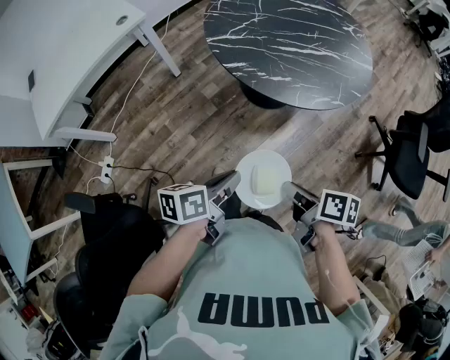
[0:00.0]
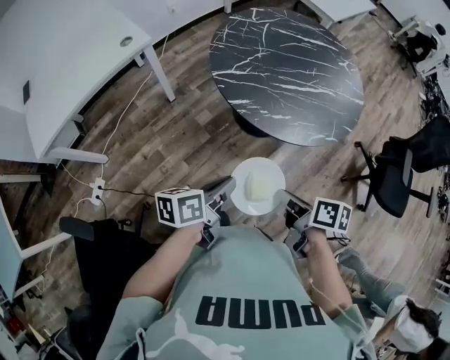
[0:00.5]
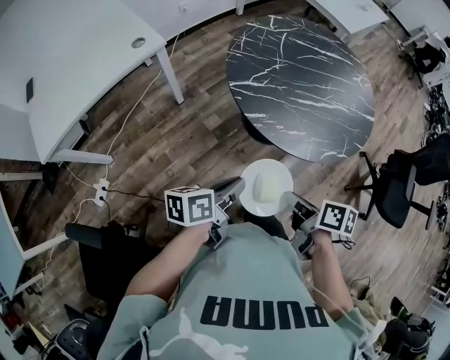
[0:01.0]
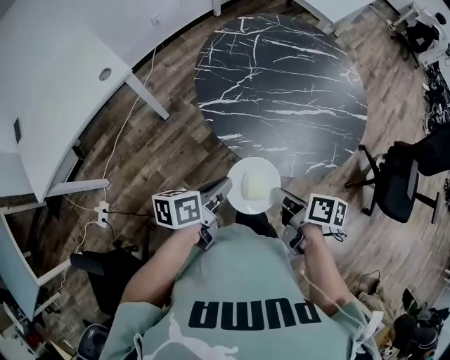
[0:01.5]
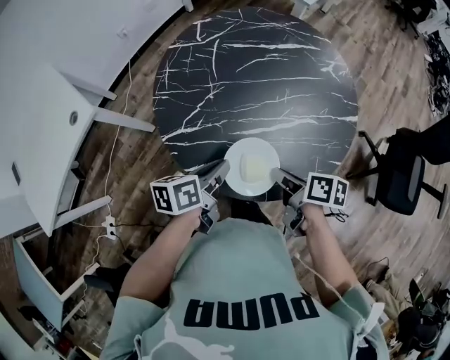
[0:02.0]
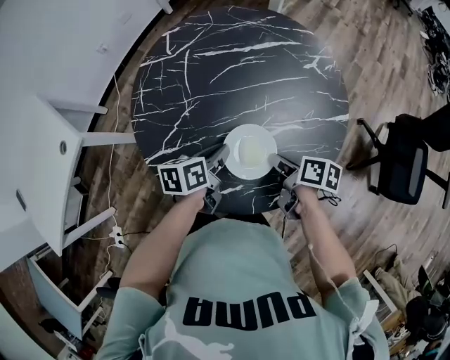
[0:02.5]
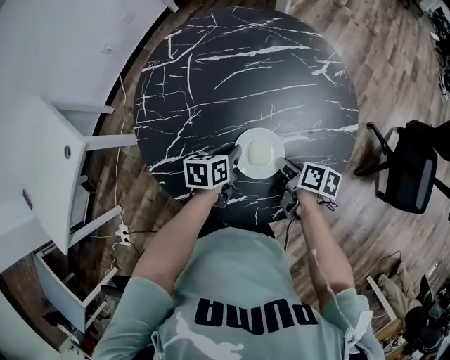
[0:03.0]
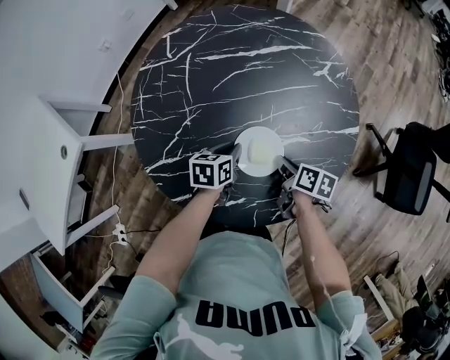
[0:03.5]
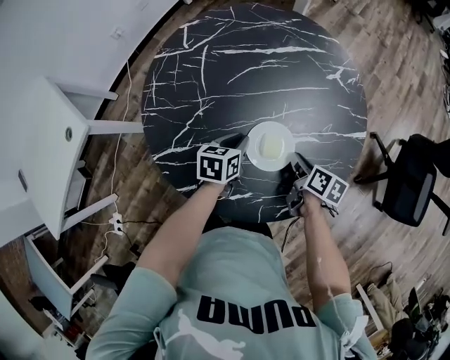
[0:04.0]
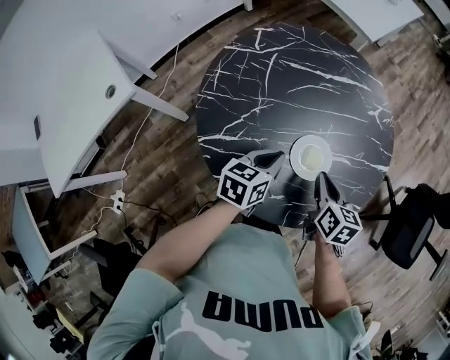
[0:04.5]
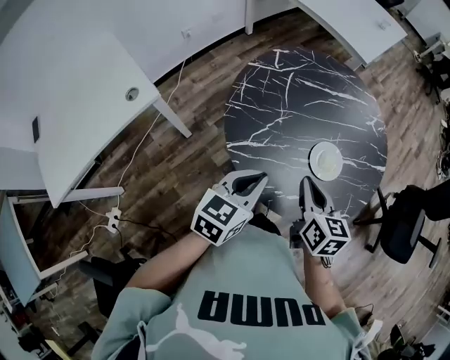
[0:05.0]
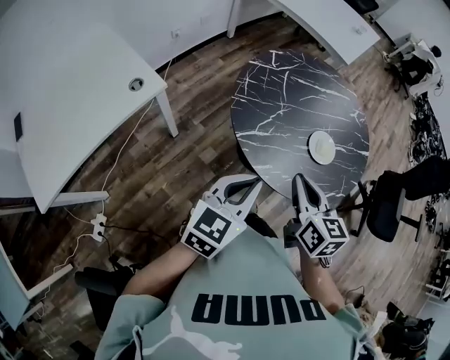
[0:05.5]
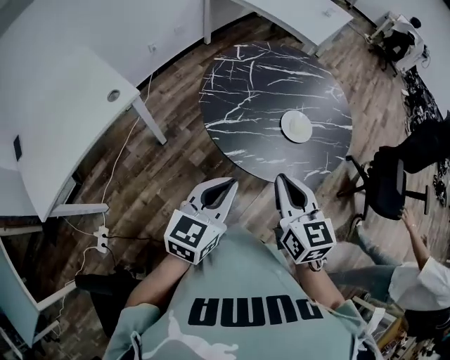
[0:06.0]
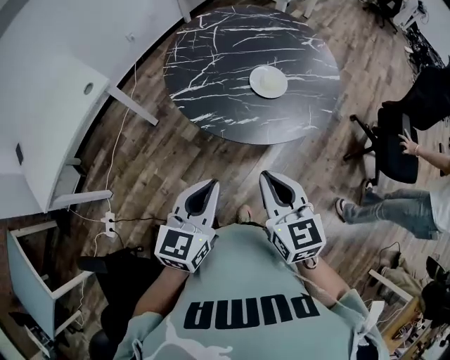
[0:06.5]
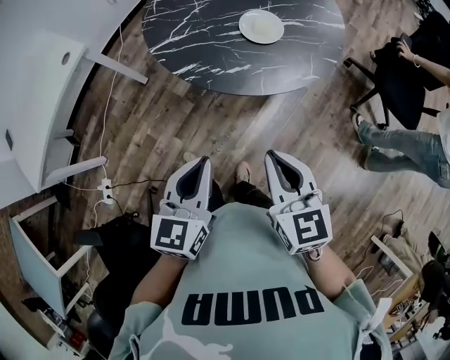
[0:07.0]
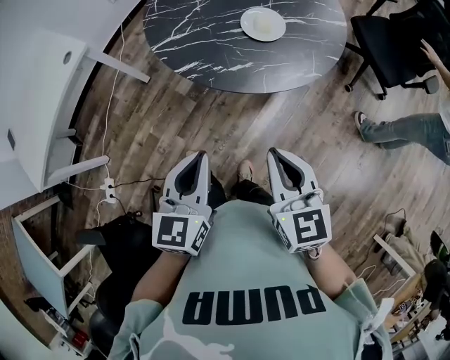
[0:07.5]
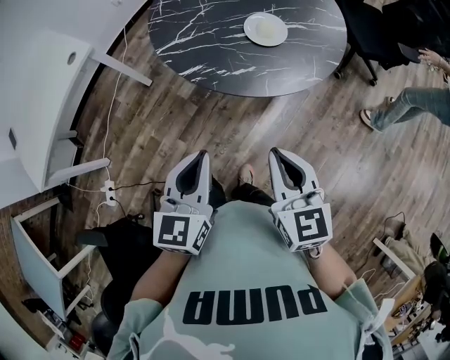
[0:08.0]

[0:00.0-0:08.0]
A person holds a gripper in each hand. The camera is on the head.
0:00.0 to 0:02.0: Both grippers move forward, about 40 cm.
0:02.0 to 0:04.0: Both grippers travel together forward, downward and to the right, approximately 20 cm. The left gripper rotates roughly 30 degrees.
0:04.0 to 0:06.0: The left gripper is displaced backward, upward and to the left by roughly 50 cm, and points its fingers some 30 degrees further upward. The right gripper is displaced upward, backward and to the left by roughly 50 cm, and twists some 50 degrees counterclockwise, seen from behind.
0:06.0 to 0:08.0: The left gripper moves backward, to the right and downward, roughly 15 cm, while the right gripper is displaced to the right, backward and downward by roughly 20 cm.

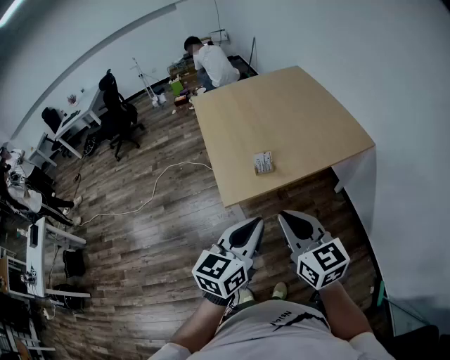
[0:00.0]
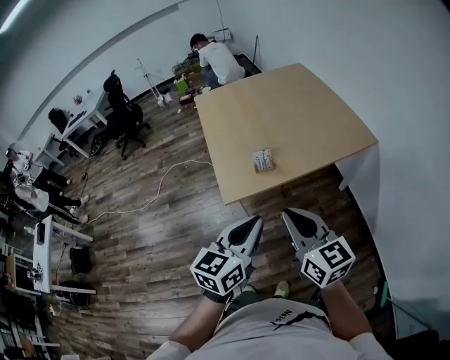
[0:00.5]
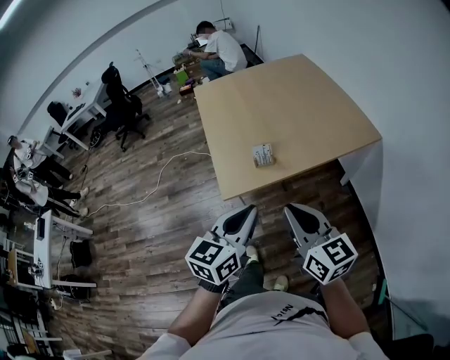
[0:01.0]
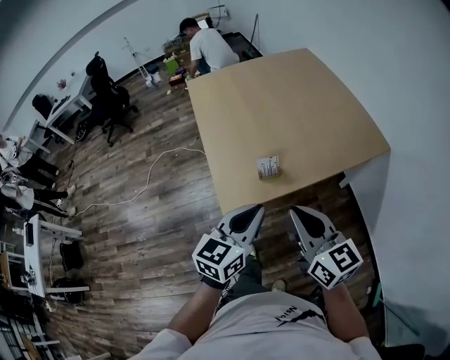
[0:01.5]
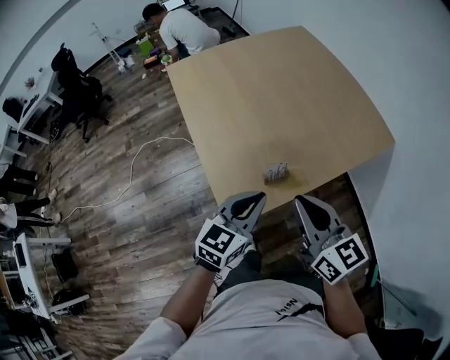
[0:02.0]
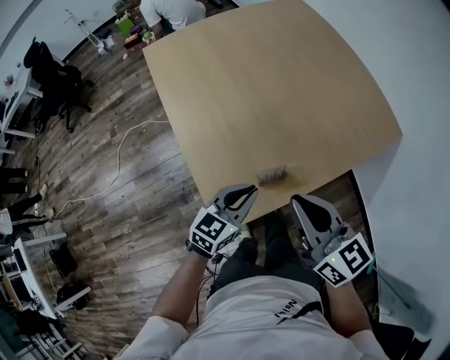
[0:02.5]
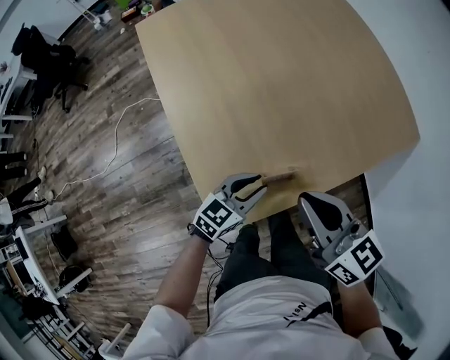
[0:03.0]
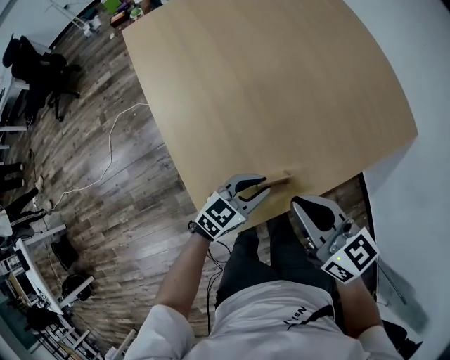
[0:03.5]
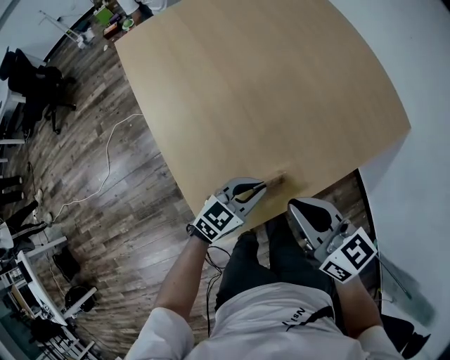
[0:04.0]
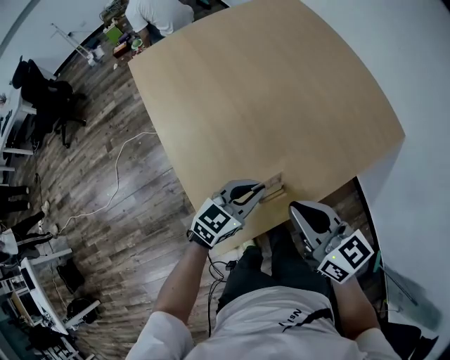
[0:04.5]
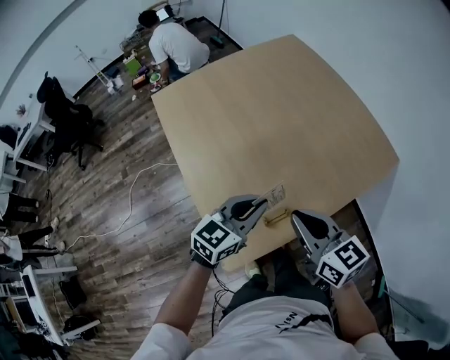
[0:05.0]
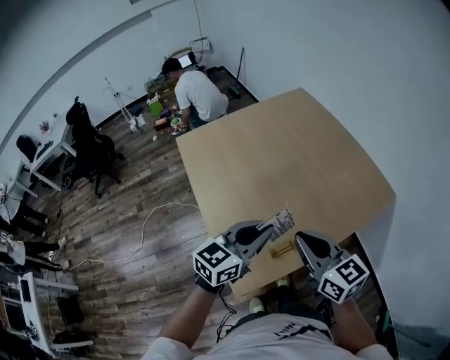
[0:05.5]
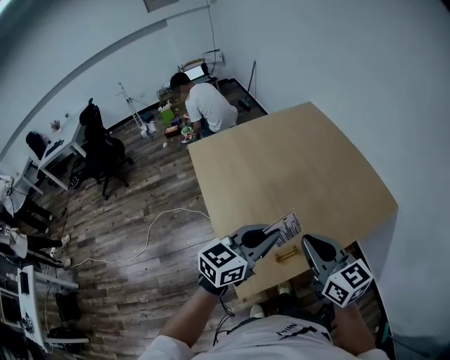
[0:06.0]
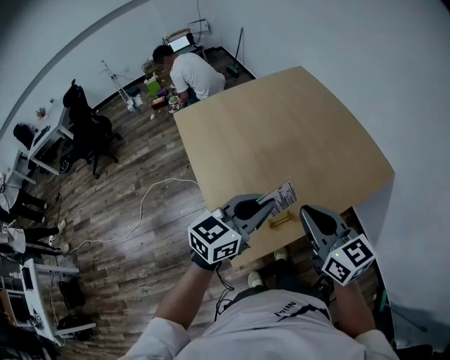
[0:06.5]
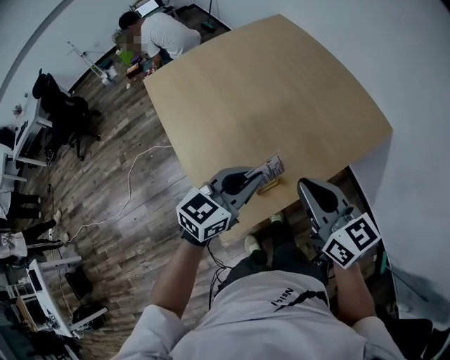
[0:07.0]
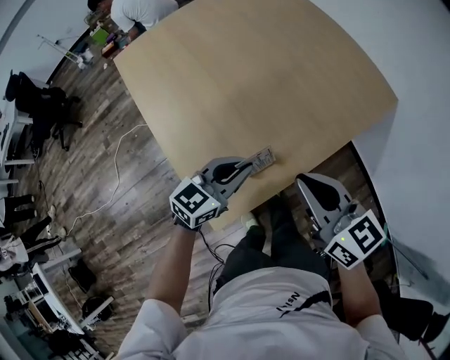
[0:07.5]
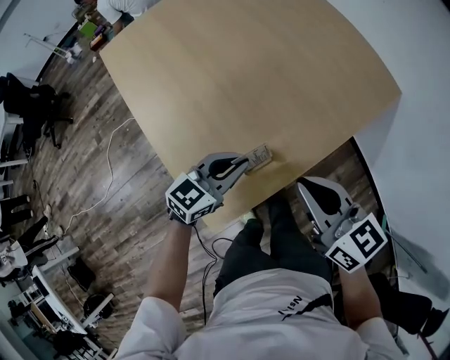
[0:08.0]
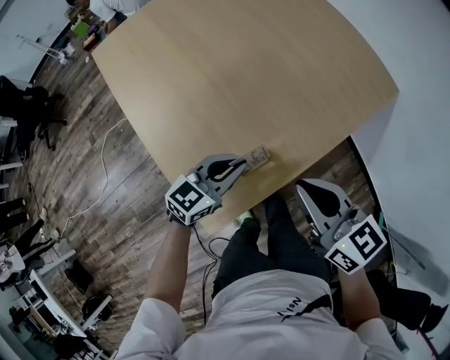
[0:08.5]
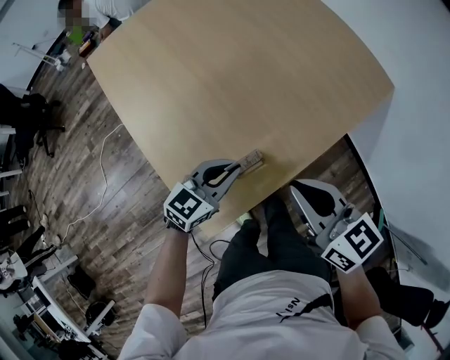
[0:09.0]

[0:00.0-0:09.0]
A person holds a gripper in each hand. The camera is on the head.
0:00.0 to 0:02.0: The right gripper shifts roughly 25 cm forward. Meanwhile the left gripper heads forward and downward, covering roughly 30 cm.
0:02.0 to 0:04.5: Both grippers travel together forward and downward, roughly 20 cm.
0:04.5 to 0:07.0: The right gripper heads upward, covering about 10 cm. The left gripper heads upward, covering roughly 15 cm.
0:07.0 to 0:09.0: The right gripper heads downward, covering roughly 10 cm. Meanwhile the left gripper heads downward, covering about 20 cm.

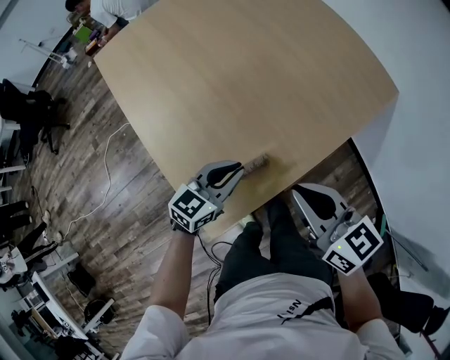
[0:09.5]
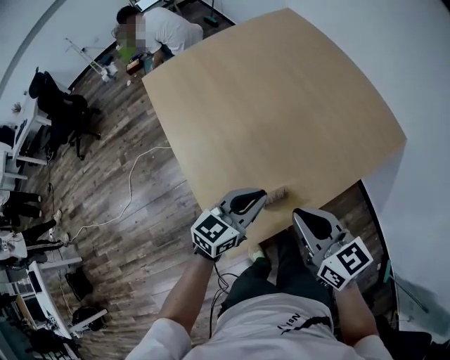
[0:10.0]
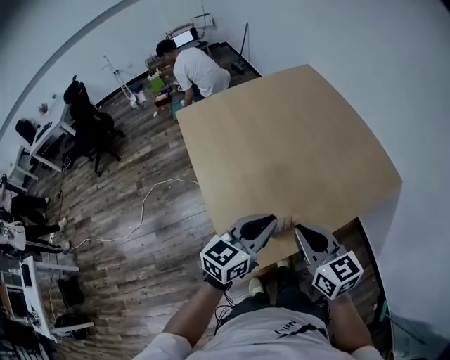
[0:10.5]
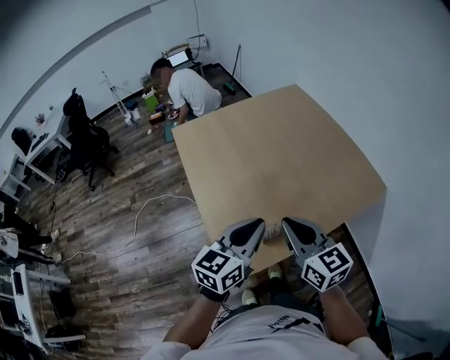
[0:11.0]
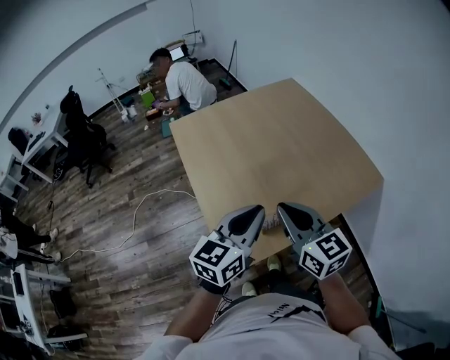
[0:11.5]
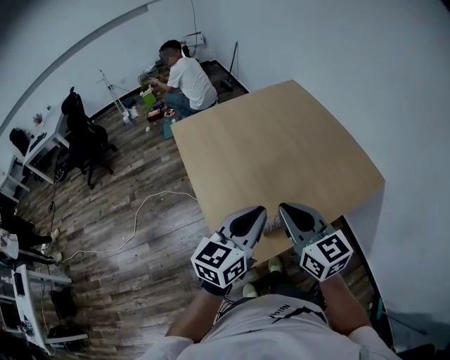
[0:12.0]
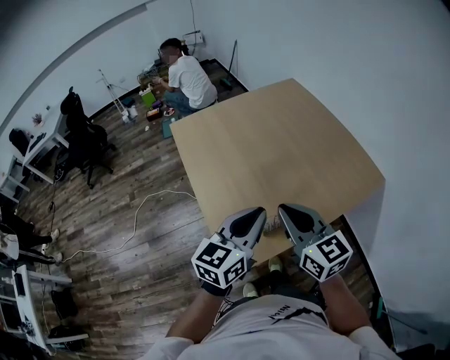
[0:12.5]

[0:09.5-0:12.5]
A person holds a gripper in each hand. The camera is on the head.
0:09.5 to 0:11.0: The left gripper goes roughly 25 cm upward, and turns by approximately 30 degrees; the right gripper moves upward and to the left, about 15 cm.
0:11.0 to 0:12.5: There are only small adjustments of the grippers.

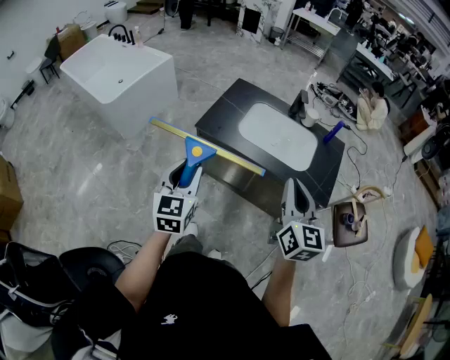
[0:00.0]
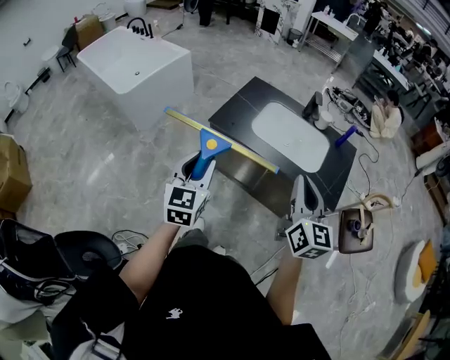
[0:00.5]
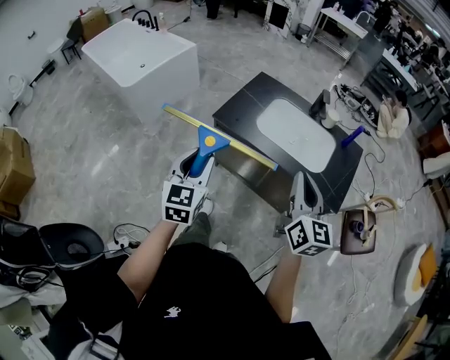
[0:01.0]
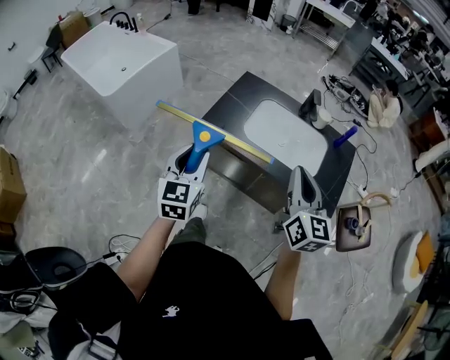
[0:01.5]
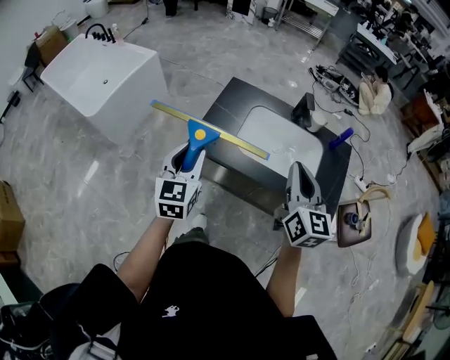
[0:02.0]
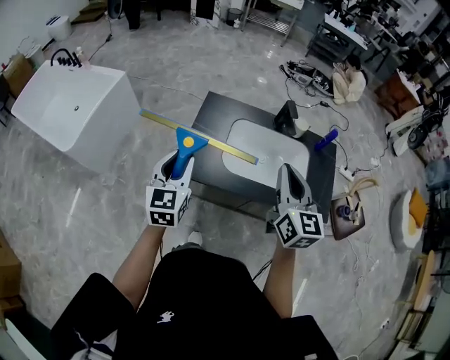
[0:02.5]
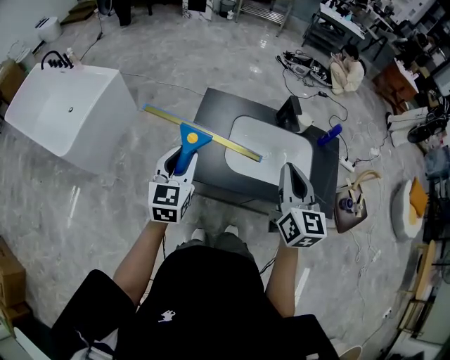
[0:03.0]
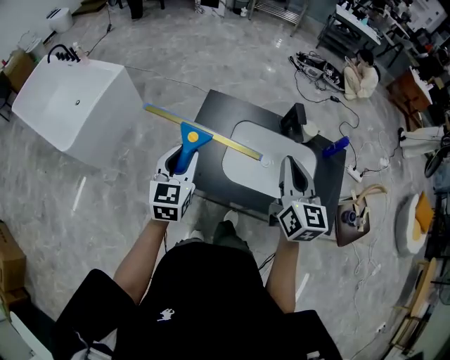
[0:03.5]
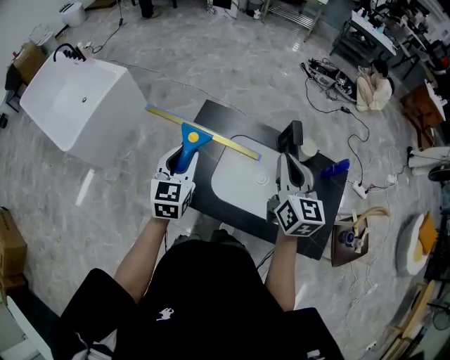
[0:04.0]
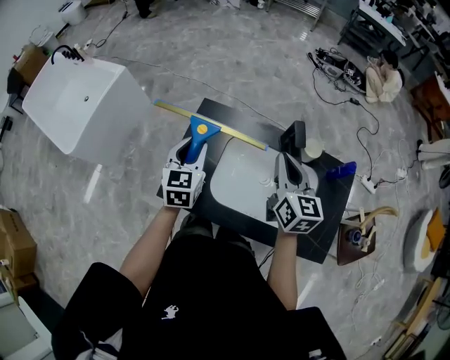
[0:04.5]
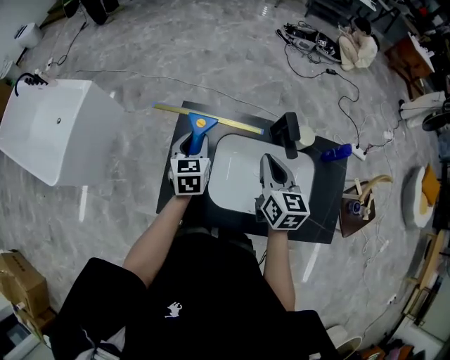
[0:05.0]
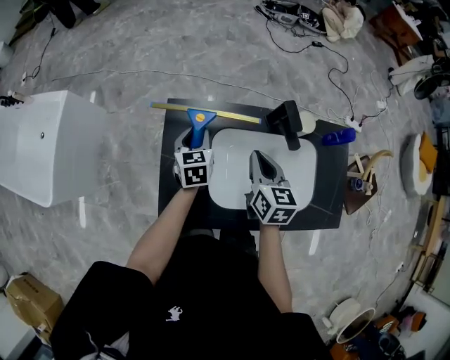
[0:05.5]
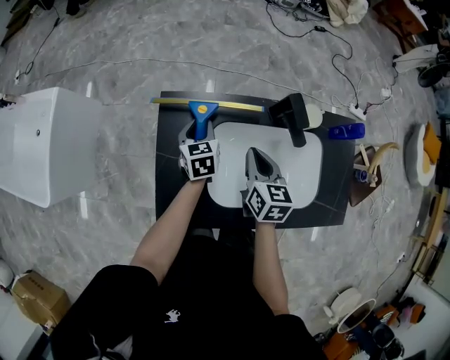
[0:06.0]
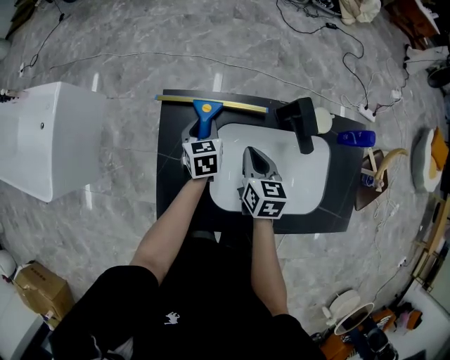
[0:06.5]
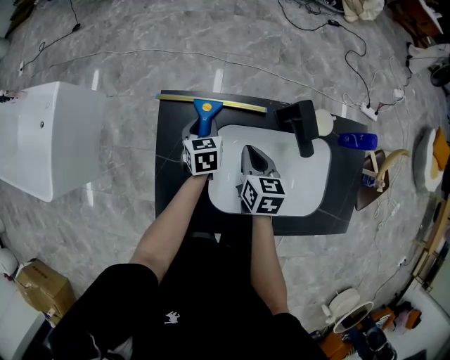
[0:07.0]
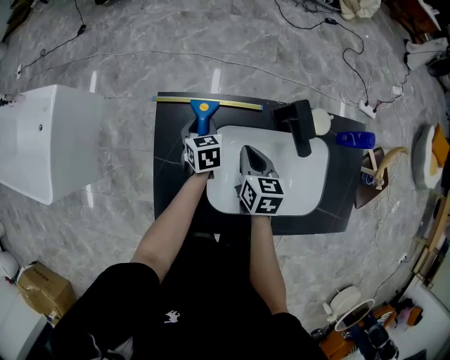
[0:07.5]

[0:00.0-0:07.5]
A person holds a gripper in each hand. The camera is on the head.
0:00.0 to 0:02.0: Both grippers move forward, some 20 cm.
0:02.0 to 0:04.0: Both grippers travel together forward, approximately 25 cm.
0:04.0 to 0:05.5: The left gripper goes approximately 25 cm forward and downward, and turns by approximately 20 degrees, while the right gripper heads downward and forward, covering some 15 cm, and changes its angle by some 30 degrees.
0:05.5 to 0:07.5: Both grippers move downward, about 10 cm.
